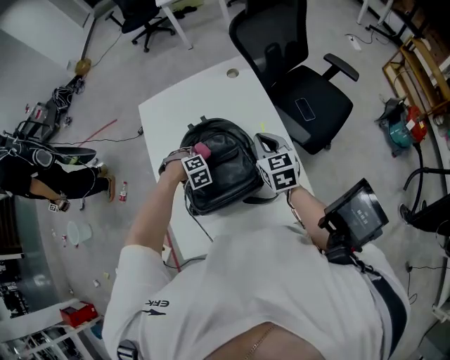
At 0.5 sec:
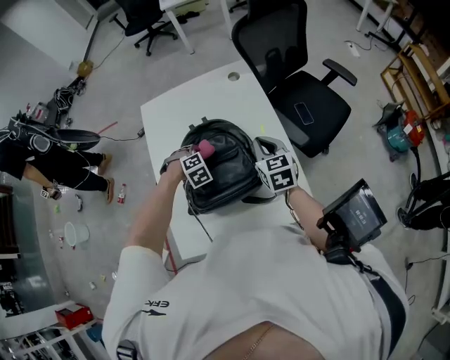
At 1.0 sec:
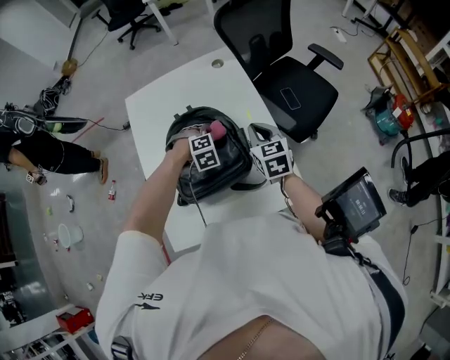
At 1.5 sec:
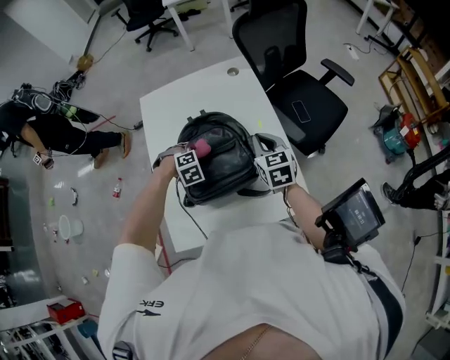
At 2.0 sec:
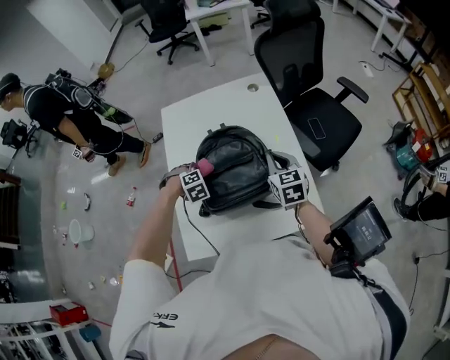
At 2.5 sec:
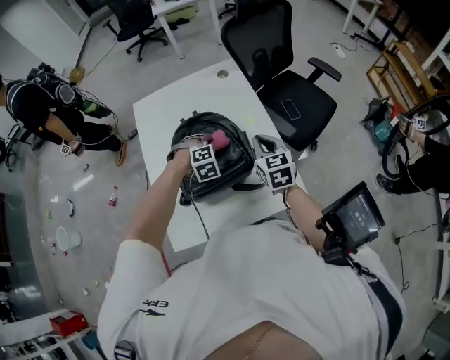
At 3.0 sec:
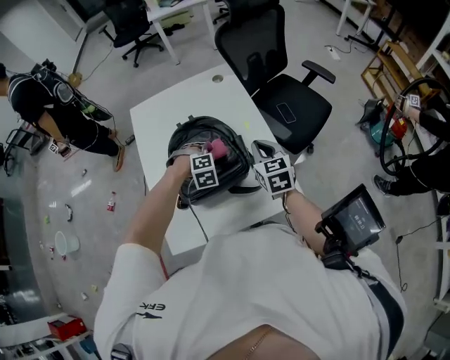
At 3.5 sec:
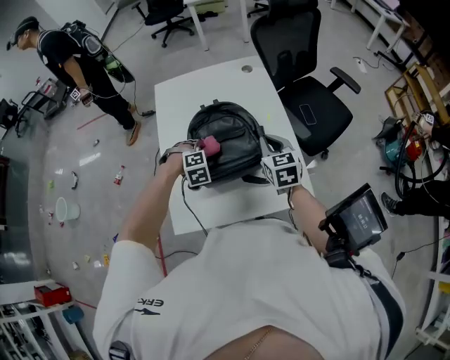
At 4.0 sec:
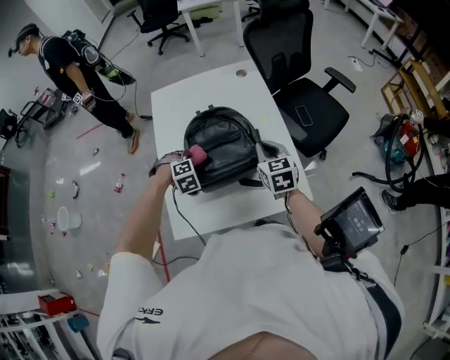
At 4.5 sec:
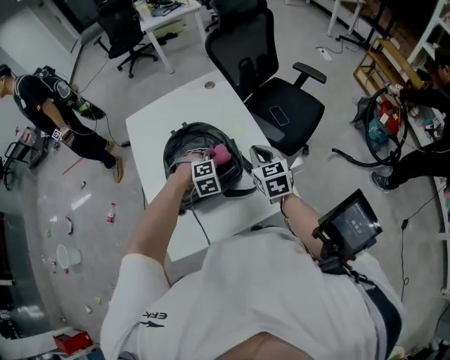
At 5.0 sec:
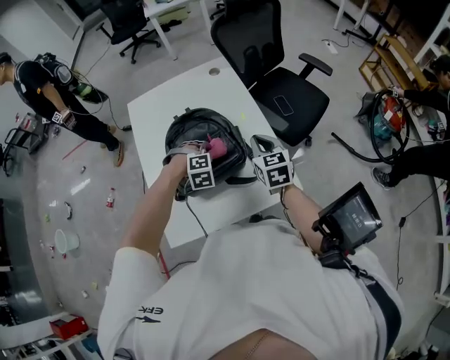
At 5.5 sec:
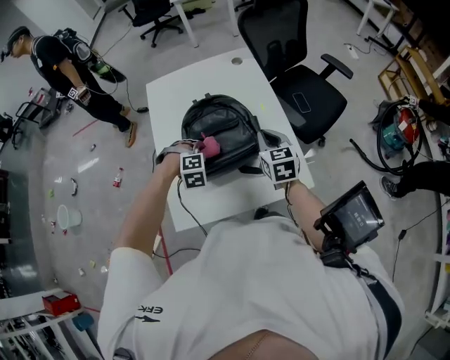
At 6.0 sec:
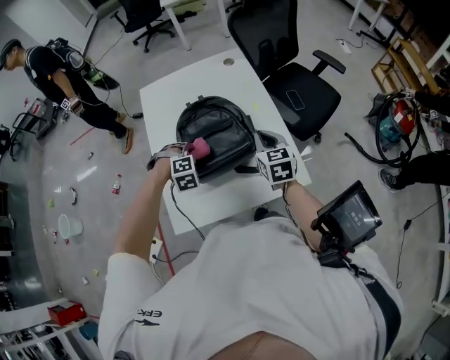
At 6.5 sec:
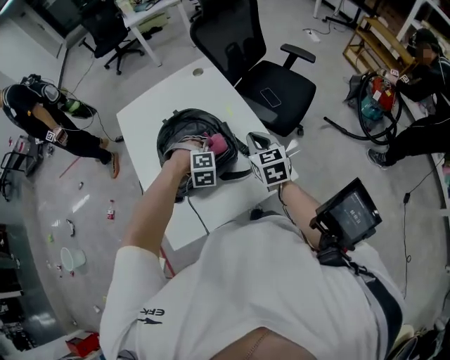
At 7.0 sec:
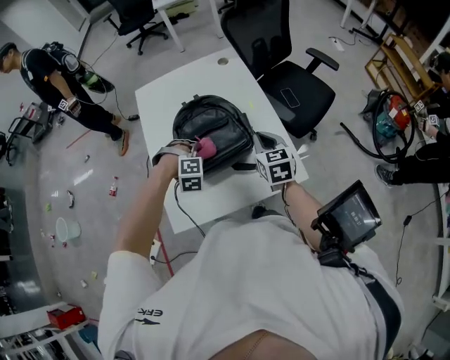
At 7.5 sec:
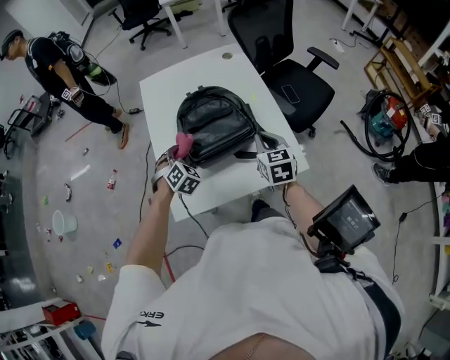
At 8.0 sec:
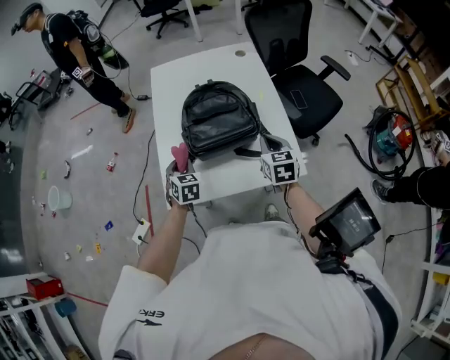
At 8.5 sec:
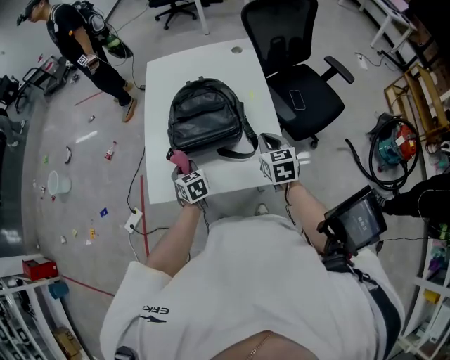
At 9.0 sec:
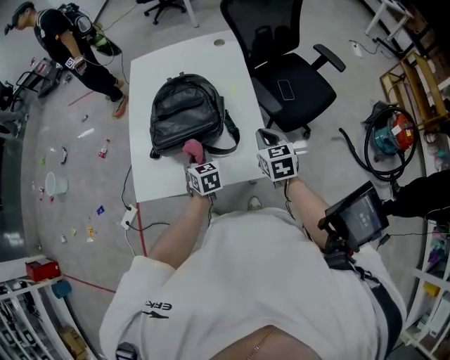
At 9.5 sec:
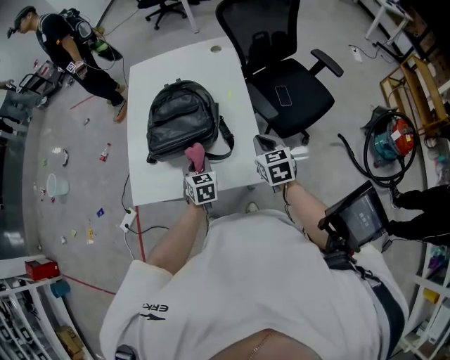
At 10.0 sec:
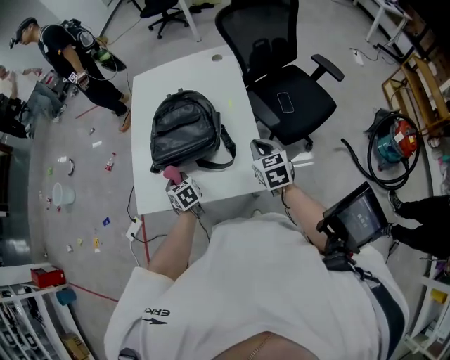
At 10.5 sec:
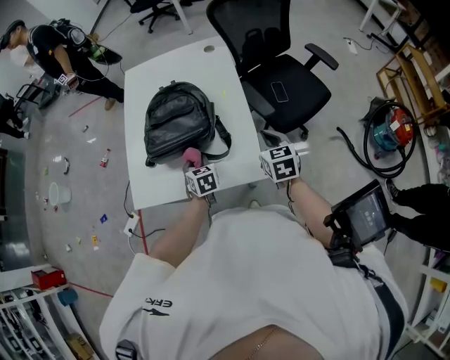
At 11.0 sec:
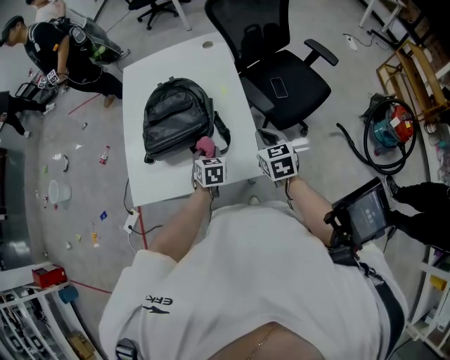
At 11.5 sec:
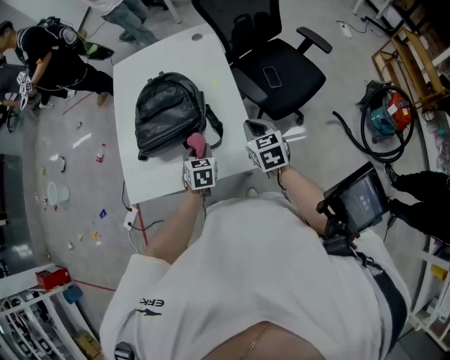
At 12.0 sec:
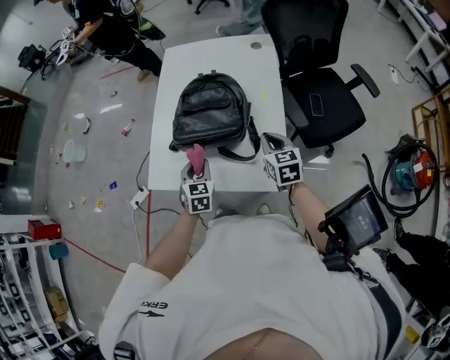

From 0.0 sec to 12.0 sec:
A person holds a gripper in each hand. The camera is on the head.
From 0.0 sec to 2.0 sec: The right gripper shifts by roughly 5 cm; the left gripper moves backward, some 5 cm, and goes to the right and returns, approximately 10 cm each way.
From 2.0 sec to 4.0 sec: The left gripper goes to the right and returns, about 15 cm each way.
From 4.0 sec to 6.0 sec: The left gripper reaches approximately 15 cm to the right, then returns.
From 6.0 sec to 8.0 sec: Both grippers move backward, some 10 cm. The left gripper travels to the right and back again, about 15 cm each way, and rolls counterclockwise, seen from behind, by approximately 80 degrees.
From 8.0 sec to 10.0 sec: The grippers both shift to the right by some 10 cm. The left gripper rotates about 30 degrees.
From 10.0 sec to 12.0 sec: The right gripper moves approximately 5 cm. The left gripper moves about 15 cm to the right and comes back, and changes its angle by some 20 degrees.

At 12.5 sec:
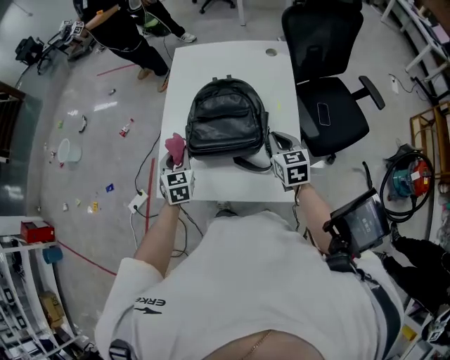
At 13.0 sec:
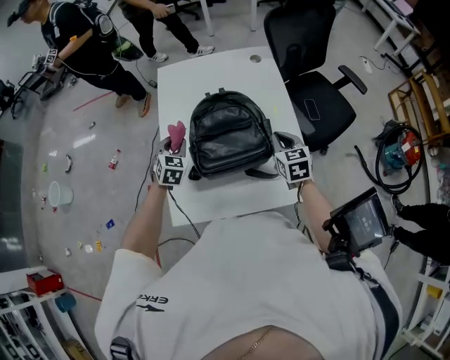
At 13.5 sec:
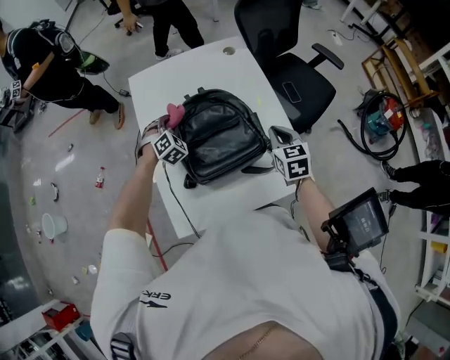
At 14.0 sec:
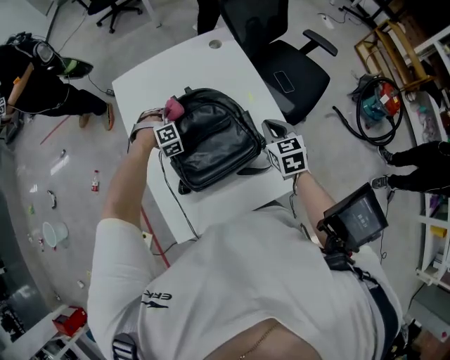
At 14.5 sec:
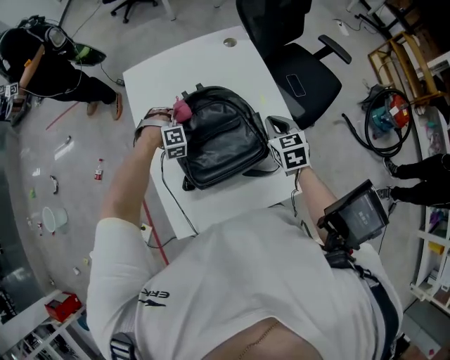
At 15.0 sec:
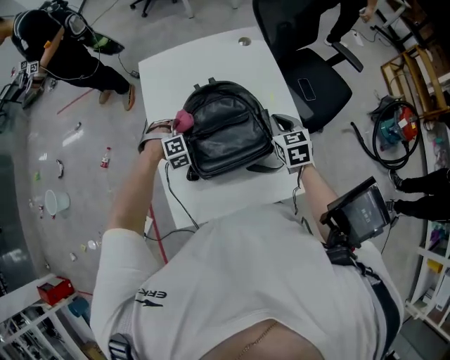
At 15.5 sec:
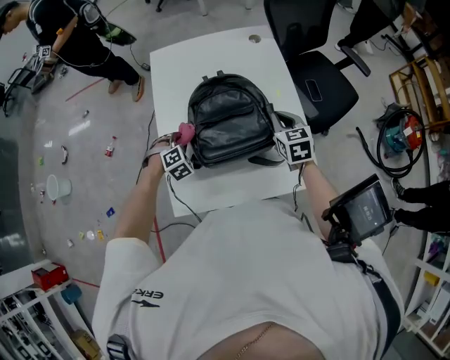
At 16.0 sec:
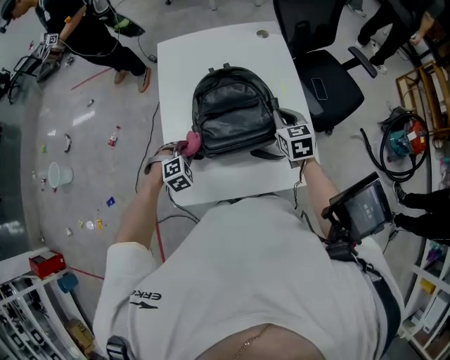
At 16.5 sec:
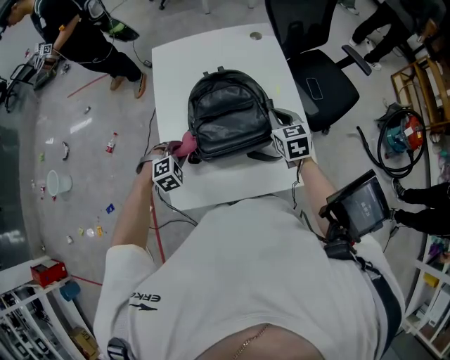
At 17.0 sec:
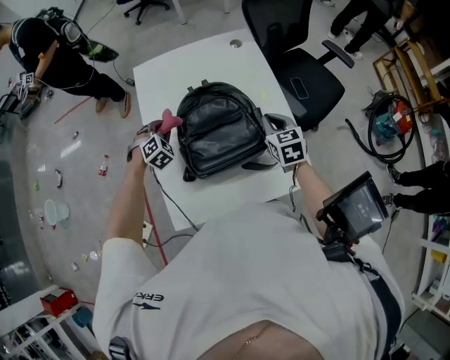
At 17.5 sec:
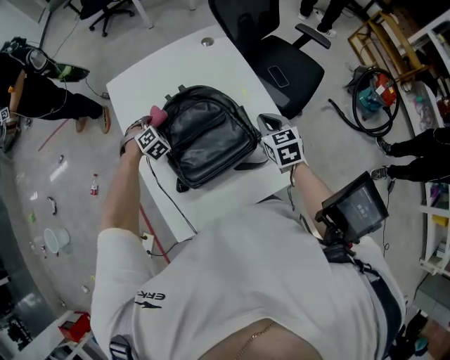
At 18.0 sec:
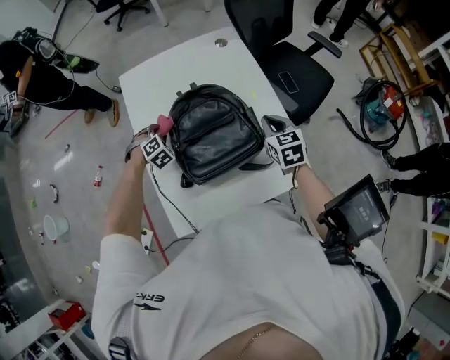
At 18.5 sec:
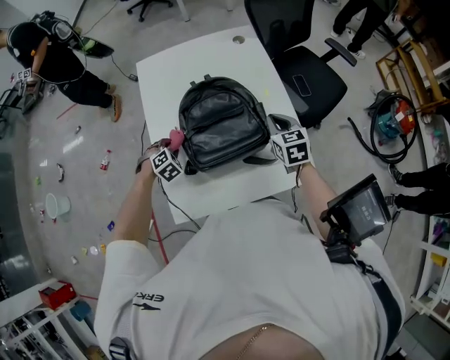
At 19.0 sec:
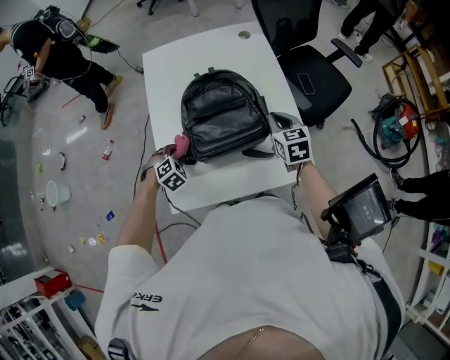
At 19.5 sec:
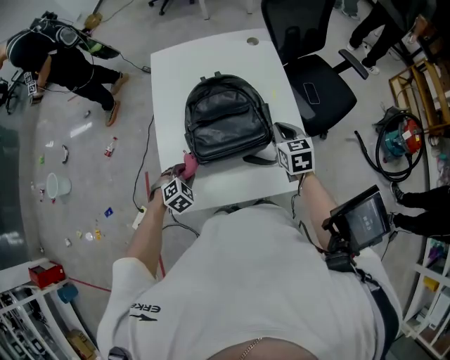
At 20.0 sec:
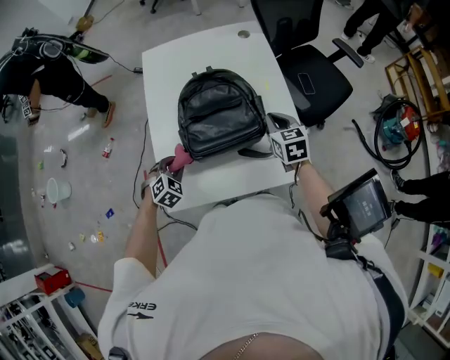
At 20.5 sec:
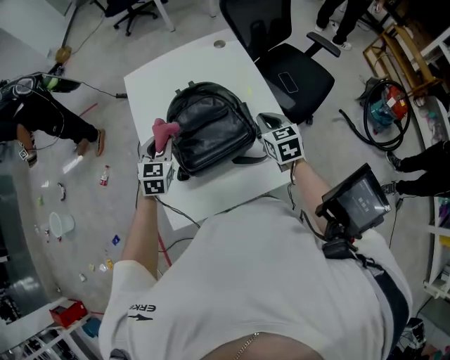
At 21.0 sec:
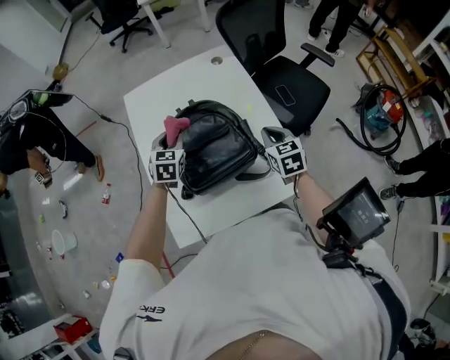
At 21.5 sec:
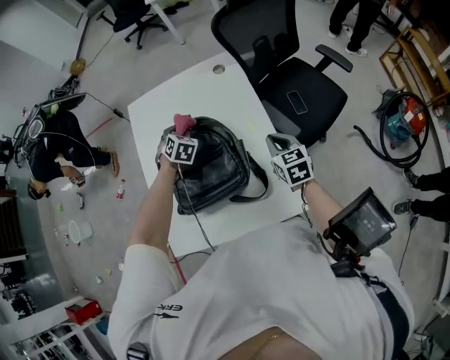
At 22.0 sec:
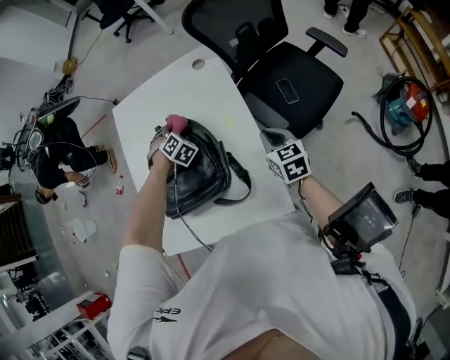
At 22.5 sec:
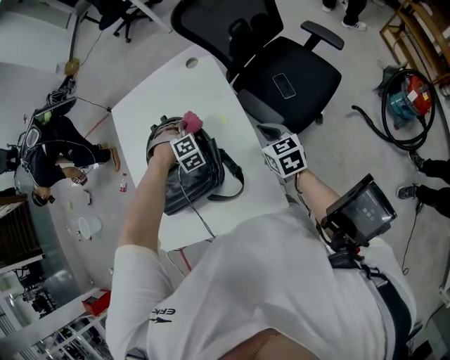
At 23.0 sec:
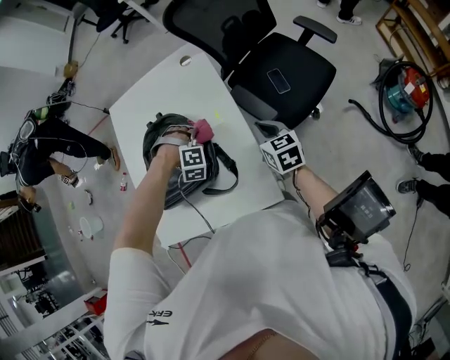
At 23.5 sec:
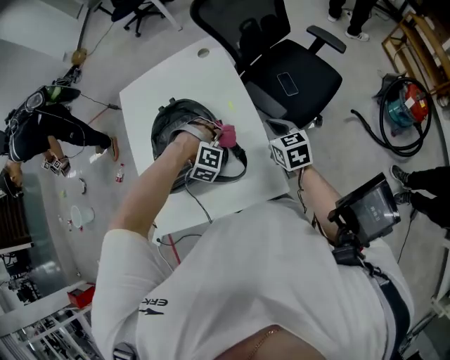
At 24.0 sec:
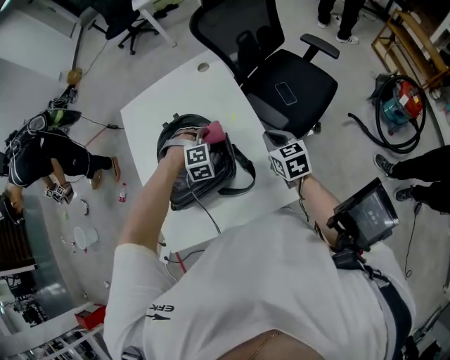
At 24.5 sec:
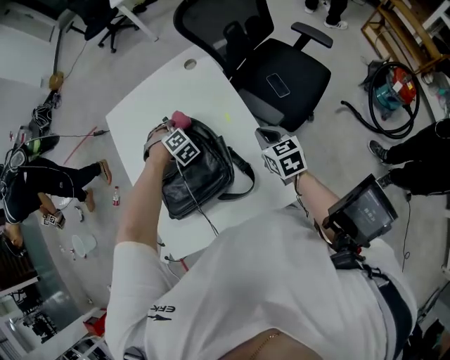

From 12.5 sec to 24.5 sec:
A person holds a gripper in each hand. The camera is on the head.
From 12.5 sec to 14.5 sec: The left gripper shifts by about 30 cm, and rotates around the line of its fingers by about 100 degrees, clockwise from behind. Meanwhile the right gripper shifts by roughly 5 cm, and changes its angle by approximately 20 degrees.
From 14.5 sec to 16.5 sec: The left gripper goes some 20 cm backward, and changes its angle by roughly 40 degrees.
From 16.5 sec to 18.5 sec: The left gripper reaches some 25 cm forward, then returns.
From 18.5 sec to 20.5 sec: The left gripper is displaced upward by roughly 15 cm, and points its fingers about 40 degrees further upward.
From 20.5 sec to 22.5 sec: The left gripper moves approximately 25 cm, and twists about 70 degrees clockwise, seen from behind; the right gripper shifts by approximately 15 cm.
From 22.5 sec to 24.5 sec: The left gripper travels to the left by some 5 cm, and goes backward and returns, some 15 cm each way.

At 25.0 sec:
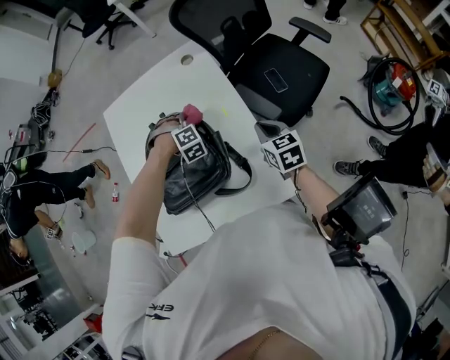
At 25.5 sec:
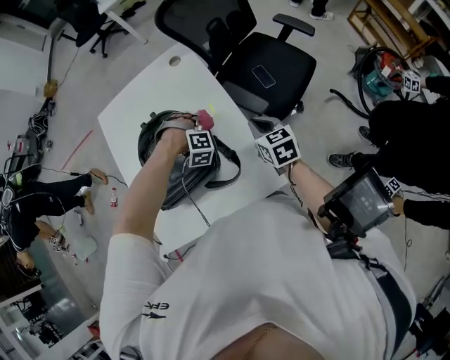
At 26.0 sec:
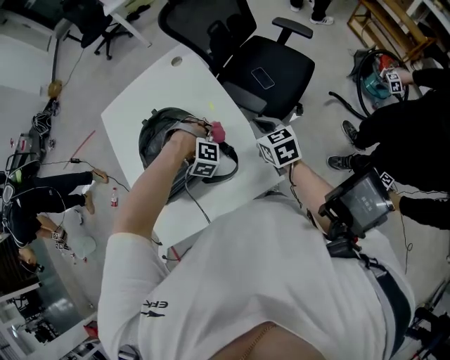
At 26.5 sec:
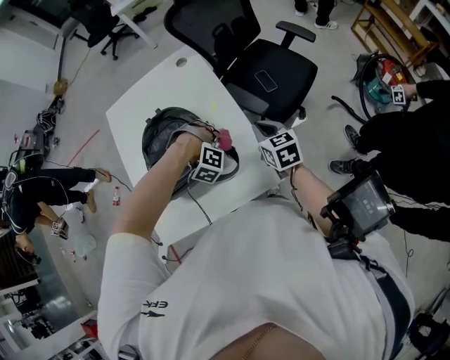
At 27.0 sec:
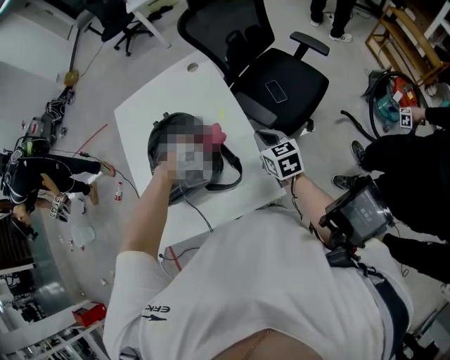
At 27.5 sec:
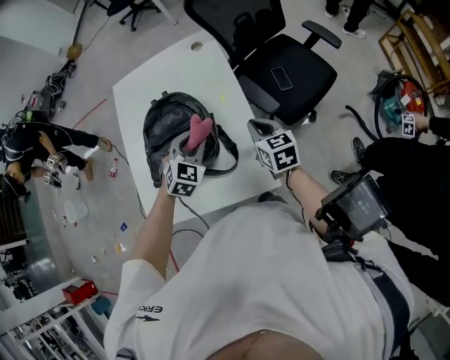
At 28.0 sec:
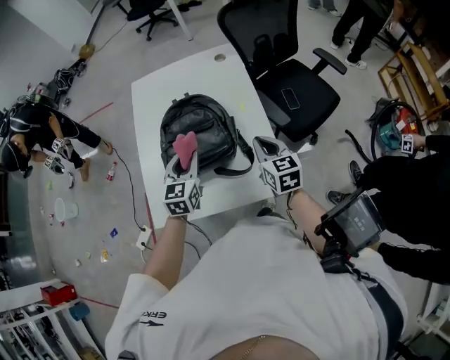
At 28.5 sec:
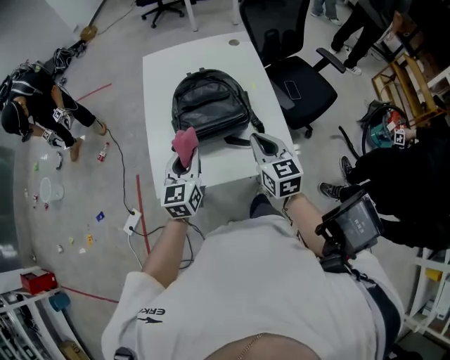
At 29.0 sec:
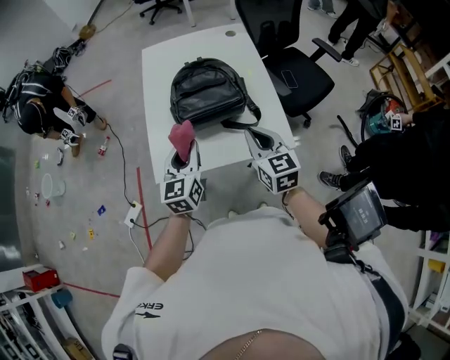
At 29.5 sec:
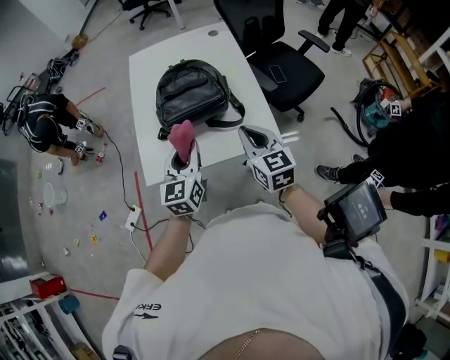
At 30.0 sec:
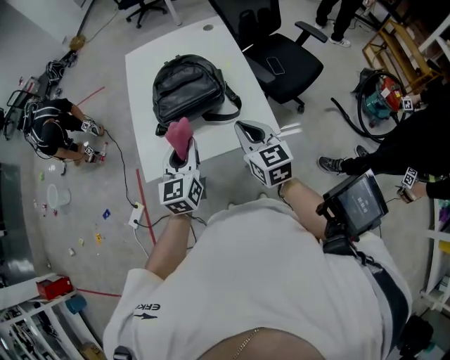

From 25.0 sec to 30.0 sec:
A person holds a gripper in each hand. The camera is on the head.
From 25.0 sec to 27.5 sec: The right gripper shifts by approximately 5 cm; the left gripper is displaced backward and upward by approximately 20 cm, and twists about 50 degrees counterclockwise, seen from behind.
From 27.5 sec to 30.0 sec: The right gripper is displaced backward, to the left and upward by approximately 30 cm; the left gripper is displaced backward and to the left by about 25 cm, and turns by some 50 degrees.
